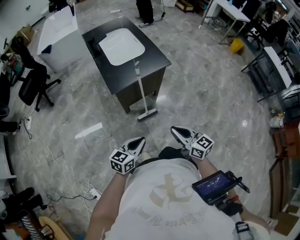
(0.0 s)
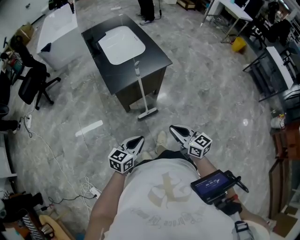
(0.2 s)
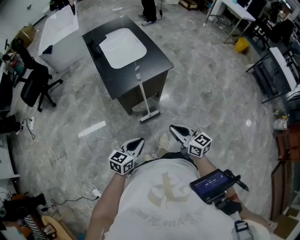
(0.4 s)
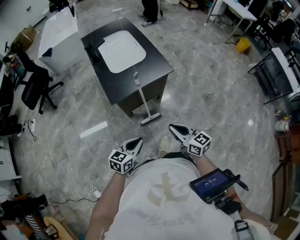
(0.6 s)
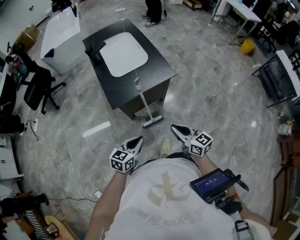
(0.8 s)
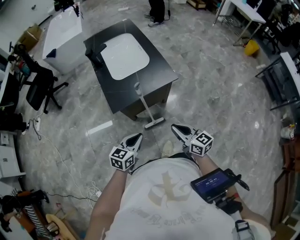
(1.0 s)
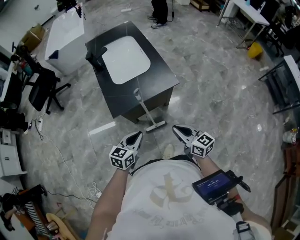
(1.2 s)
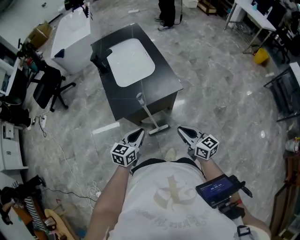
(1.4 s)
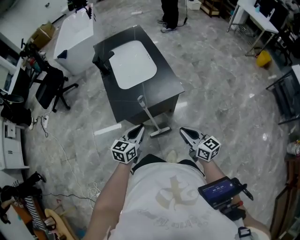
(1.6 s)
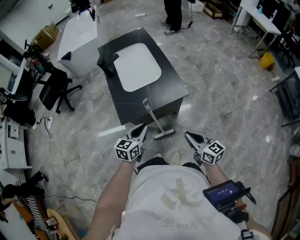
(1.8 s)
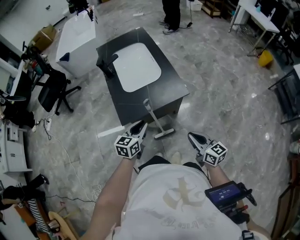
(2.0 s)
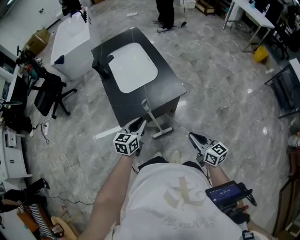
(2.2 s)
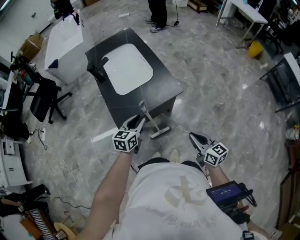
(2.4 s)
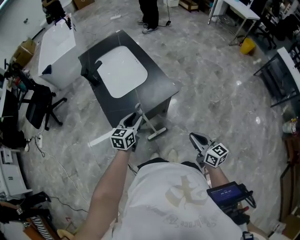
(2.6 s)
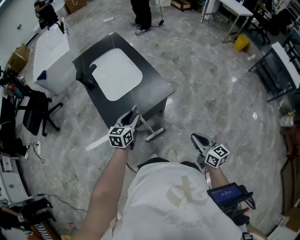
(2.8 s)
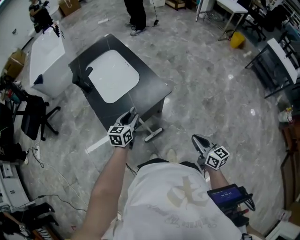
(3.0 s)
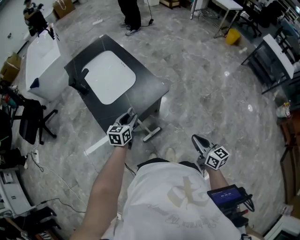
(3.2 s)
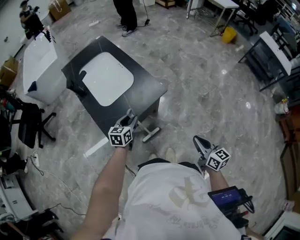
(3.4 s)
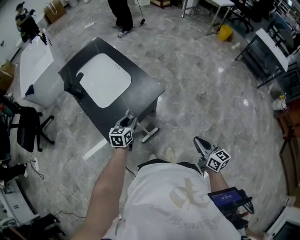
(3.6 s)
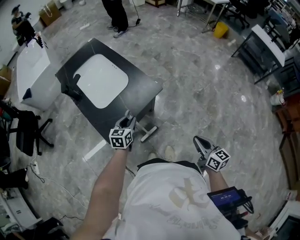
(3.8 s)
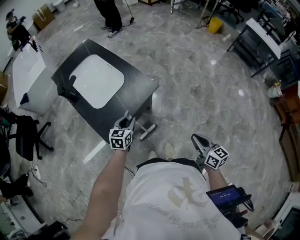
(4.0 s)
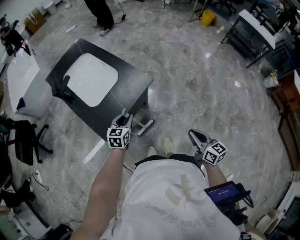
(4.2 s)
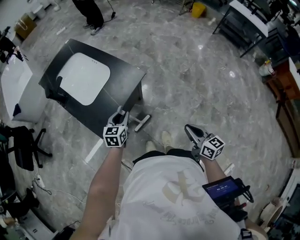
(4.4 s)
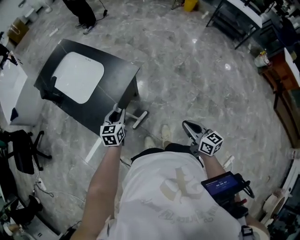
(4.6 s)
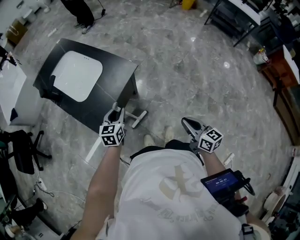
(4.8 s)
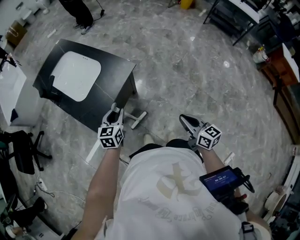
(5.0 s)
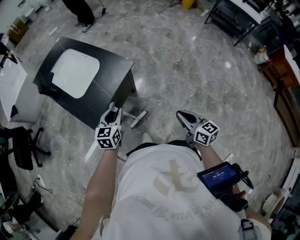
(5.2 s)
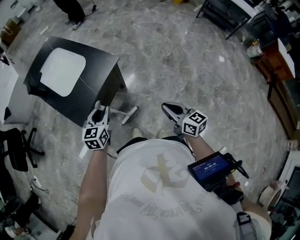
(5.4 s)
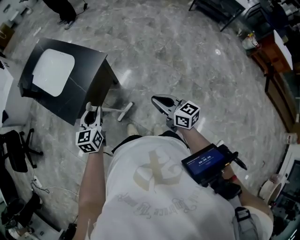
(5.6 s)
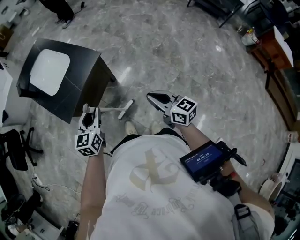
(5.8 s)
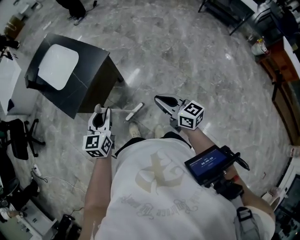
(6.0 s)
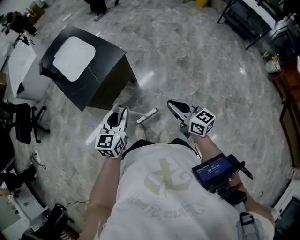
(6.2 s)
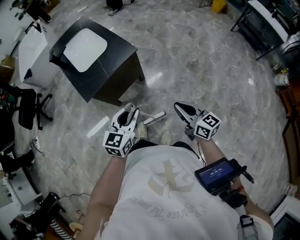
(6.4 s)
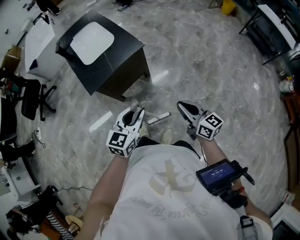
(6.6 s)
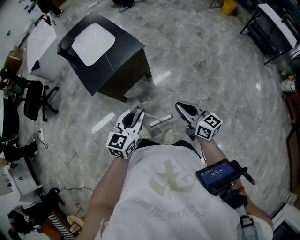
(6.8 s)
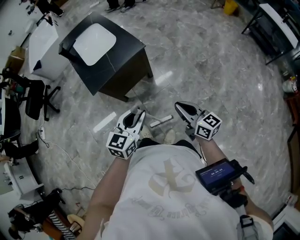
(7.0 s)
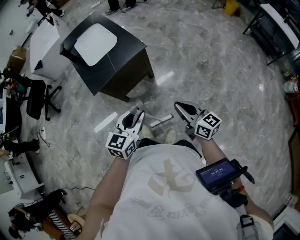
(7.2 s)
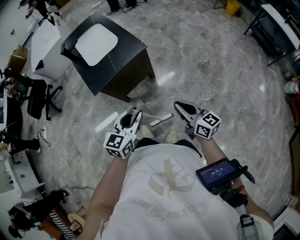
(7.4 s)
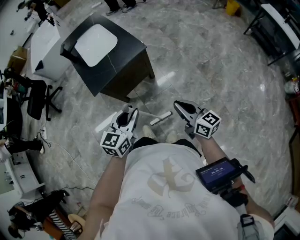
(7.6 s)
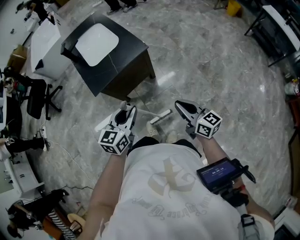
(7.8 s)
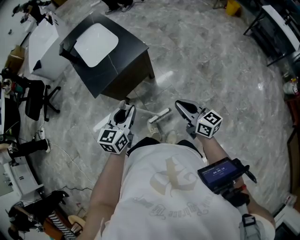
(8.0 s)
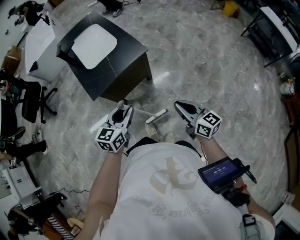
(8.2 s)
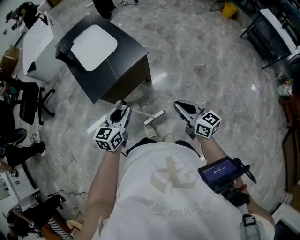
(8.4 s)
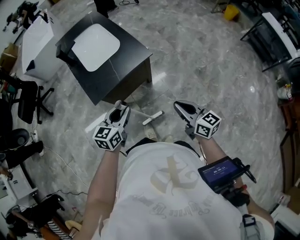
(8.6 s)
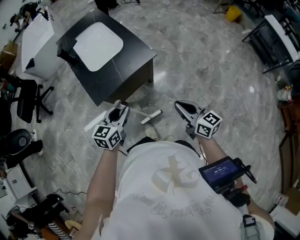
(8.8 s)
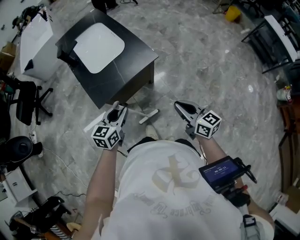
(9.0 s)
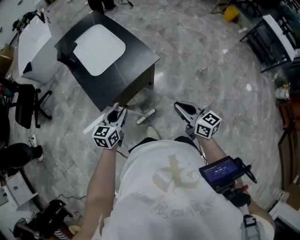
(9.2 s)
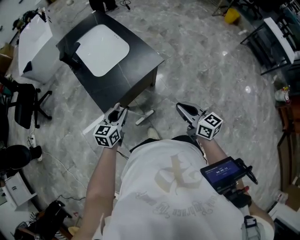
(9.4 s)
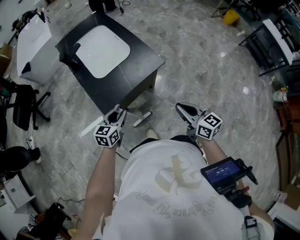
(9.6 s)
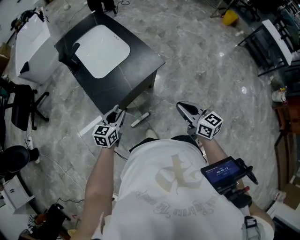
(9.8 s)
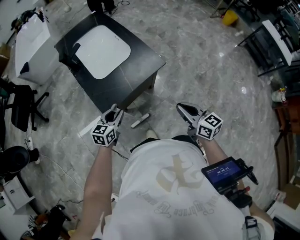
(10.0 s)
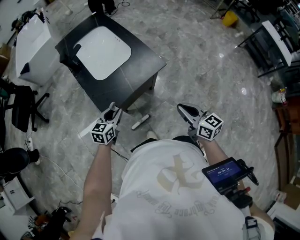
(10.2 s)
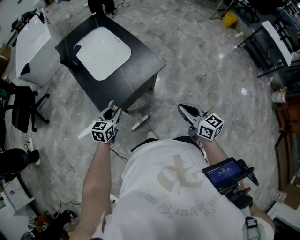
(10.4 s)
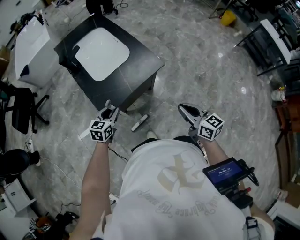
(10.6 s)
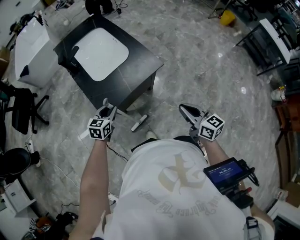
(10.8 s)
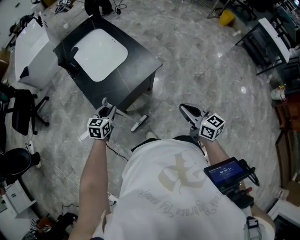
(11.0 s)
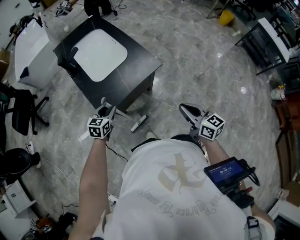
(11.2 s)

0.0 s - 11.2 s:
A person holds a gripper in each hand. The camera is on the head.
0.0 s - 1.6 s: The grippers both shift forward by about 25 cm.
1.6 s - 3.2 s: The left gripper is displaced forward by about 15 cm, and opens its fingers; the right gripper shifts about 10 cm to the right and backward, and rotates approximately 30 degrees.
3.2 s - 4.8 s: The left gripper moves backward, about 5 cm; the right gripper shifts some 10 cm backward.
4.8 s - 6.4 s: The left gripper heads backward, to the right and upward, covering roughly 25 cm, while the right gripper heads to the right, covering roughly 5 cm, and swivels about 20 degrees.
6.4 s - 8.0 s: The left gripper moves approximately 5 cm.
8.0 s - 9.6 s: The left gripper is displaced to the left, forward and downward by about 25 cm. Meanwhile the right gripper goes some 15 cm forward and to the left.
9.6 s - 11.2 s: The left gripper travels forward by approximately 5 cm.

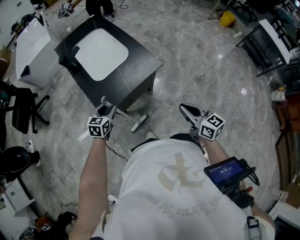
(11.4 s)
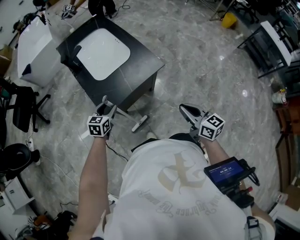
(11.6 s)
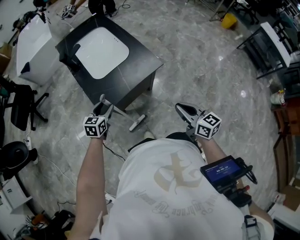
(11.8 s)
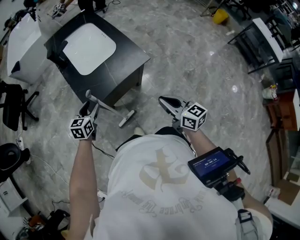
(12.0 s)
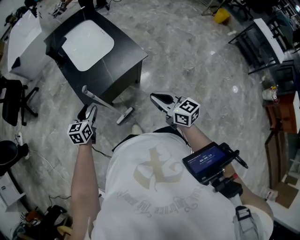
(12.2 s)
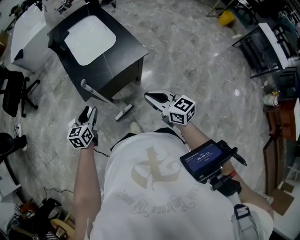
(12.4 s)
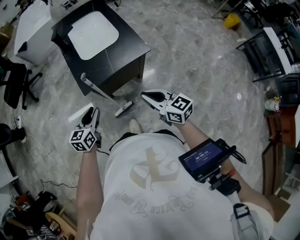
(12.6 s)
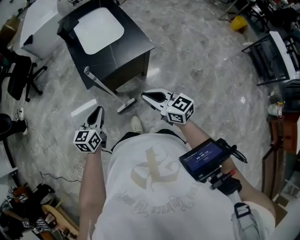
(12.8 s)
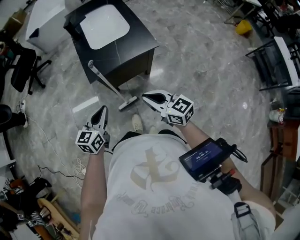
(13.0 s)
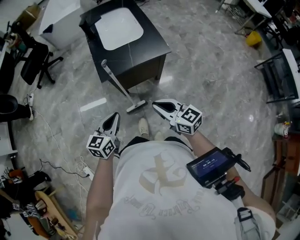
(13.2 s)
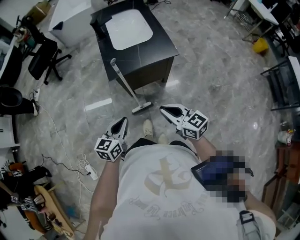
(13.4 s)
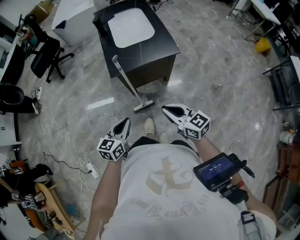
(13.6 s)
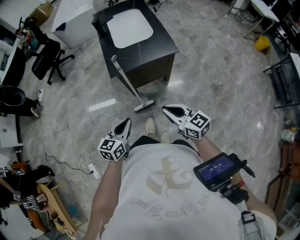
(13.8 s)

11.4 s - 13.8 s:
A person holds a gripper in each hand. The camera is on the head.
11.4 s - 12.6 s: The left gripper travels backward and upward by approximately 15 cm, and rotates roughly 20 degrees; the right gripper travels to the left by approximately 5 cm, and rotates about 20 degrees.
12.6 s - 13.8 s: The left gripper travels backward by about 15 cm, and closes. Meanwhile the right gripper heads backward, covering roughly 10 cm.

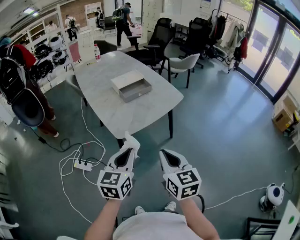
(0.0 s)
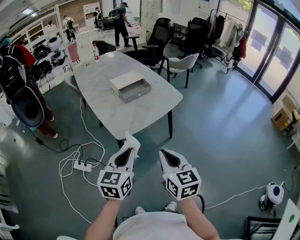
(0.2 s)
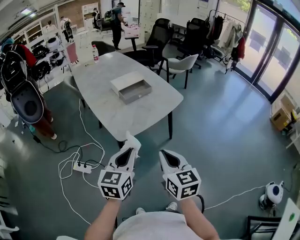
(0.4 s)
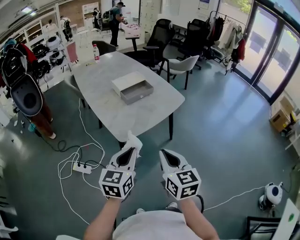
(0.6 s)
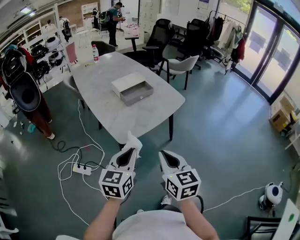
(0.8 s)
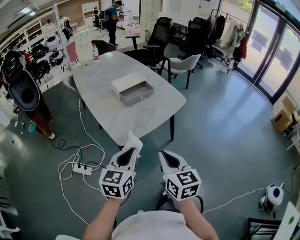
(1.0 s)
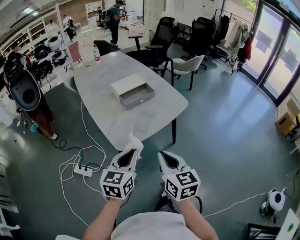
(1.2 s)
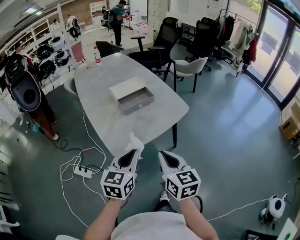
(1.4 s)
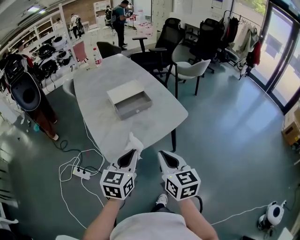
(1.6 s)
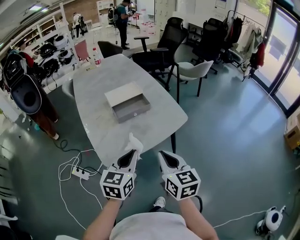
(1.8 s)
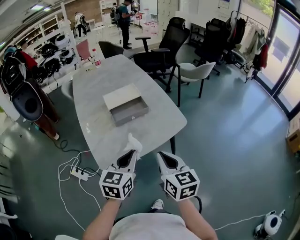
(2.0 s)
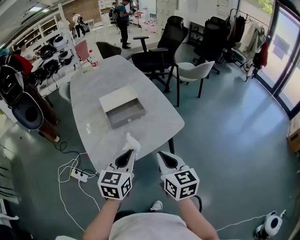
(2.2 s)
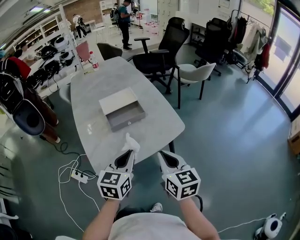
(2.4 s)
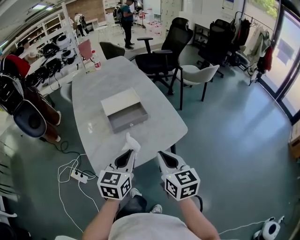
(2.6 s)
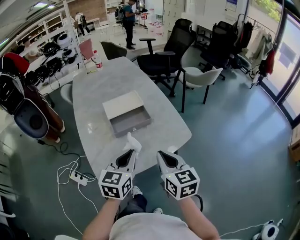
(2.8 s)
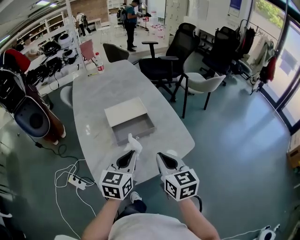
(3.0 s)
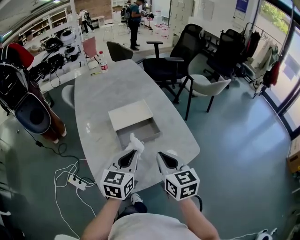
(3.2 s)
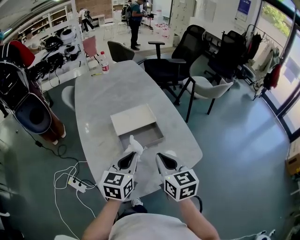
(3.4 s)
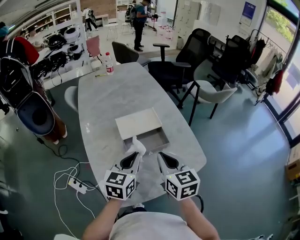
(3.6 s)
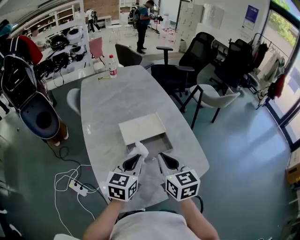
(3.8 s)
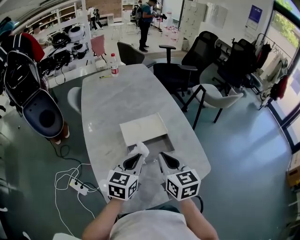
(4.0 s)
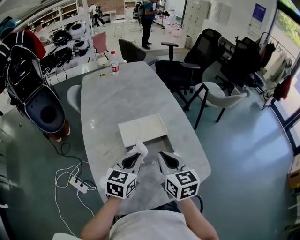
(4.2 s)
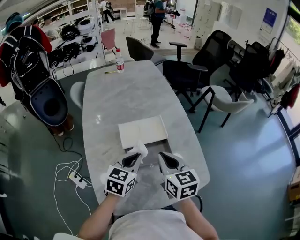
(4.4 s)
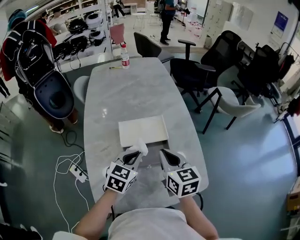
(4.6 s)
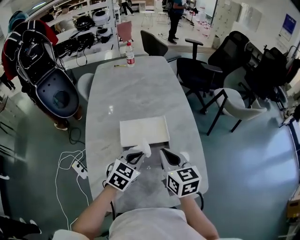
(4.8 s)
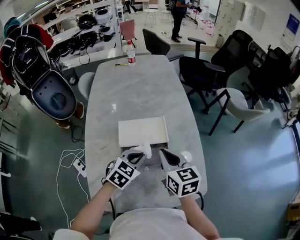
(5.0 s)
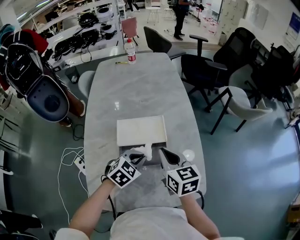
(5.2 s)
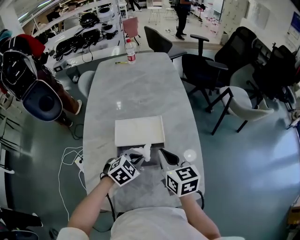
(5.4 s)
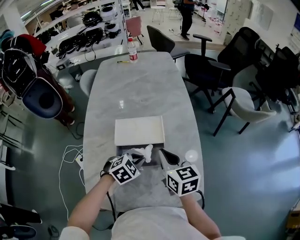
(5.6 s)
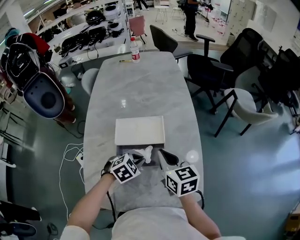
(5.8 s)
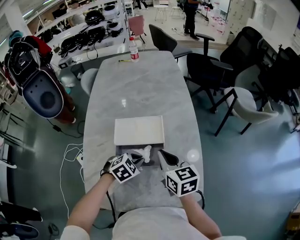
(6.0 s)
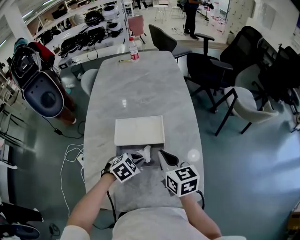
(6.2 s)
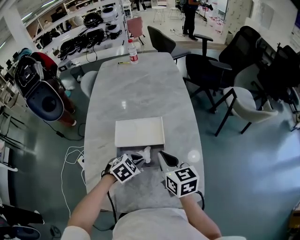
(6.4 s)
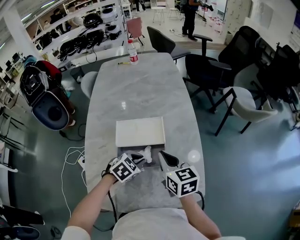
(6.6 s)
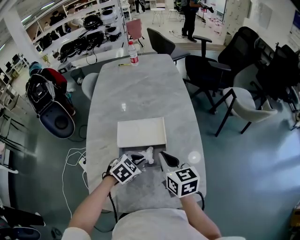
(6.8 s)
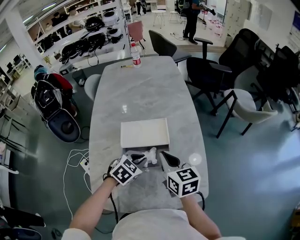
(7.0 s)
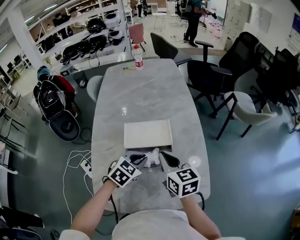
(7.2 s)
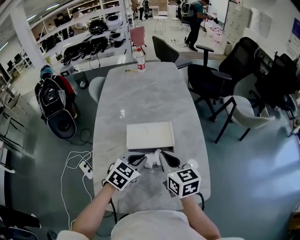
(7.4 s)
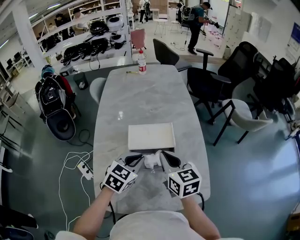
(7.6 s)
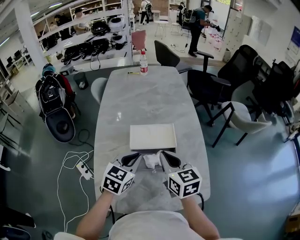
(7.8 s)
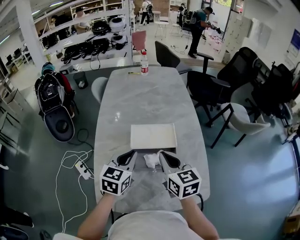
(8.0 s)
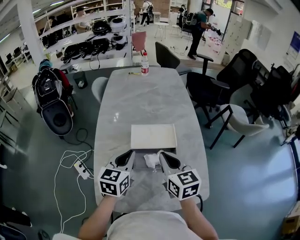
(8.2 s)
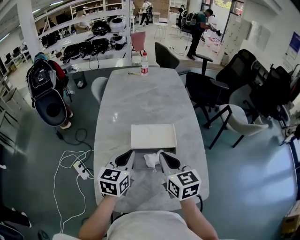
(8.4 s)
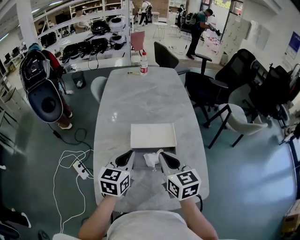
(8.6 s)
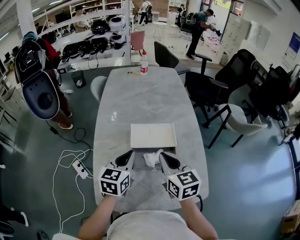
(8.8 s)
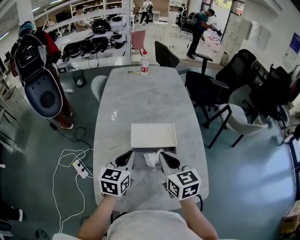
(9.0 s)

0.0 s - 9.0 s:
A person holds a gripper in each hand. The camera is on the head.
0.0 s - 1.6 s: The grippers both shift forward by roughly 15 cm.
1.6 s - 3.0 s: Both grippers move forward, some 20 cm.
3.0 s - 4.4 s: The two grippers go some 20 cm forward.
4.4 s - 6.0 s: The right gripper is displaced forward, to the right and downward by some 10 cm; the left gripper heads downward and to the right, covering approximately 15 cm, and tilts its fingers roughly 30 degrees downward.
6.0 s - 7.6 s: The right gripper travels to the left and upward by about 10 cm; the left gripper moves upward and to the left, about 15 cm, and rotates roughly 30 degrees.
7.6 s - 9.0 s: The left gripper goes about 5 cm to the left, and swivels some 30 degrees.

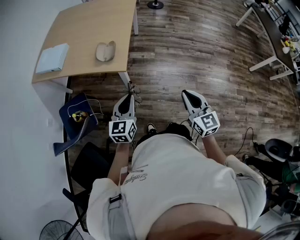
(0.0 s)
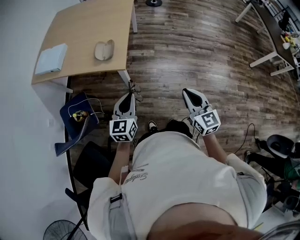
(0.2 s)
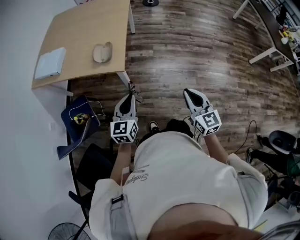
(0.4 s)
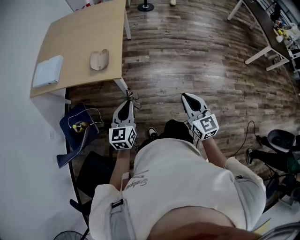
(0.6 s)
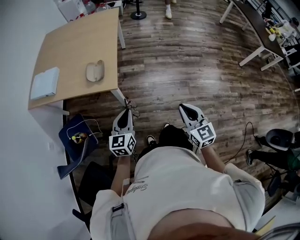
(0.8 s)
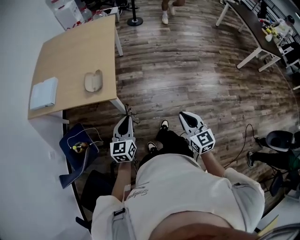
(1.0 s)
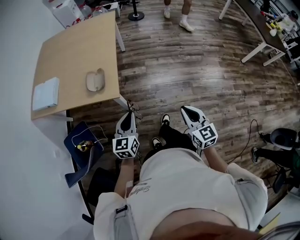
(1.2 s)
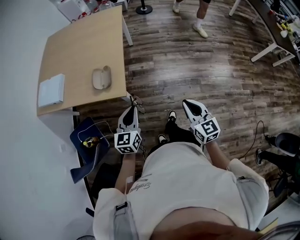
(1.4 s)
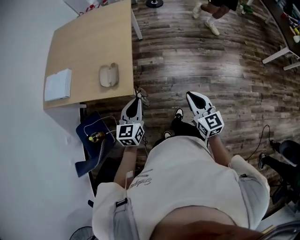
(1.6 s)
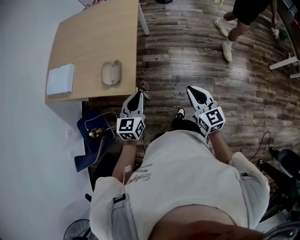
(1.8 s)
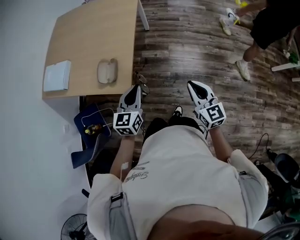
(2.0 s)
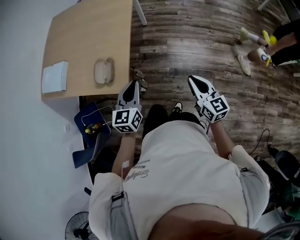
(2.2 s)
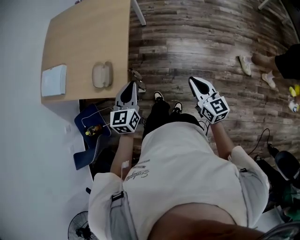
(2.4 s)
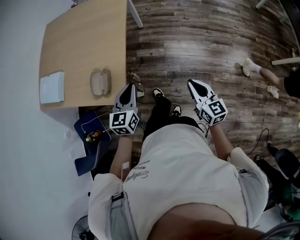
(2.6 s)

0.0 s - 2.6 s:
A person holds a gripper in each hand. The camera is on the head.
0.0 s - 1.2 s: The right gripper shifts by approximately 5 cm; the left gripper heads forward, covering approximately 5 cm.
1.2 s - 2.6 s: Both grippers move forward, about 25 cm.
